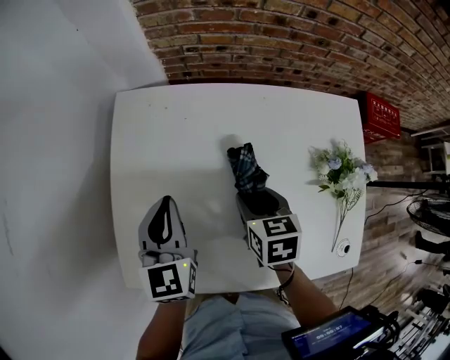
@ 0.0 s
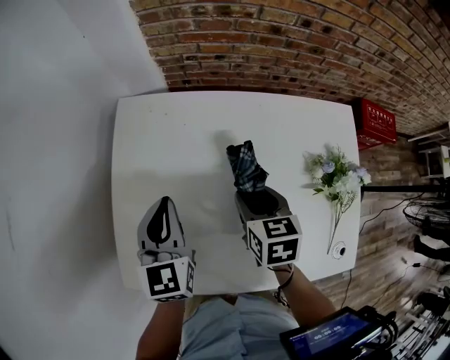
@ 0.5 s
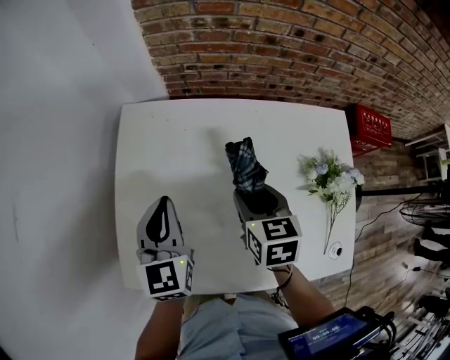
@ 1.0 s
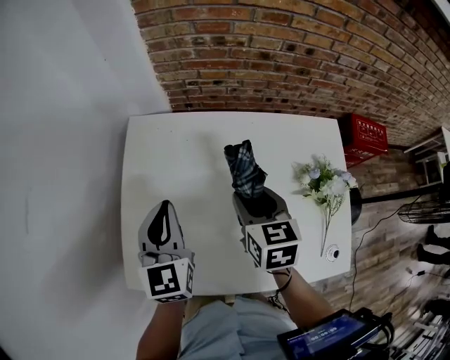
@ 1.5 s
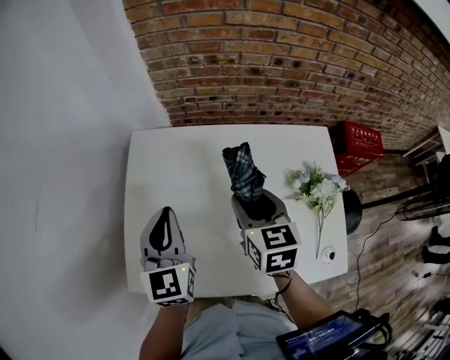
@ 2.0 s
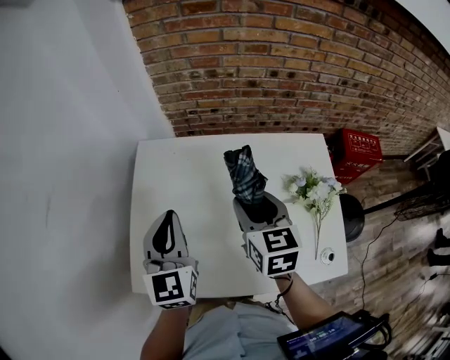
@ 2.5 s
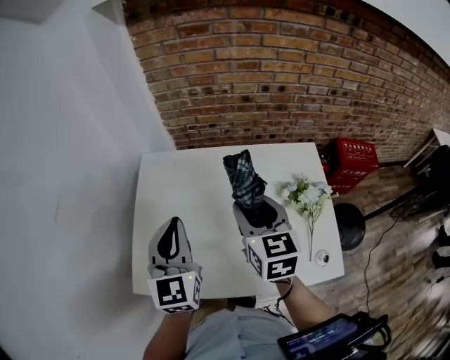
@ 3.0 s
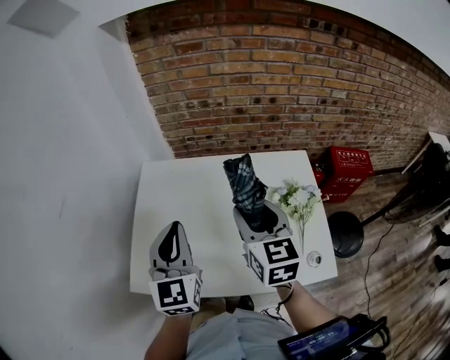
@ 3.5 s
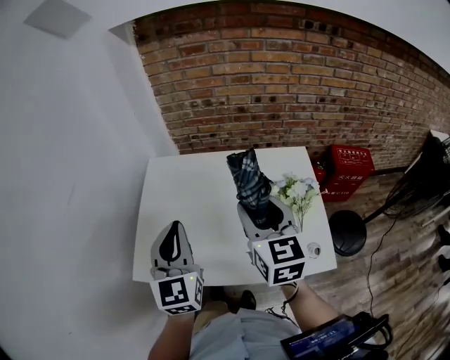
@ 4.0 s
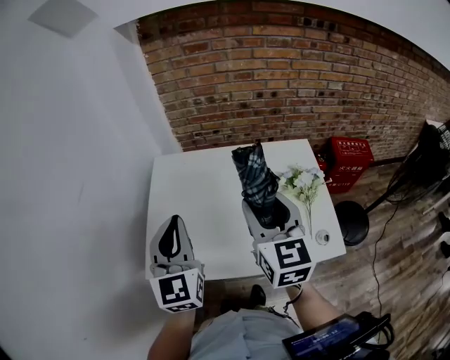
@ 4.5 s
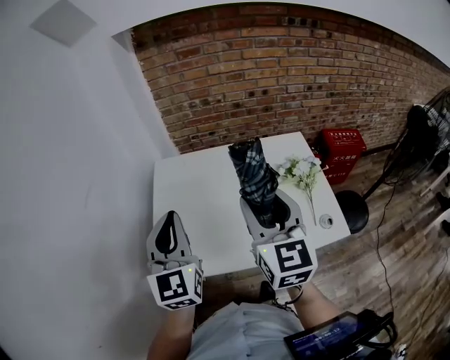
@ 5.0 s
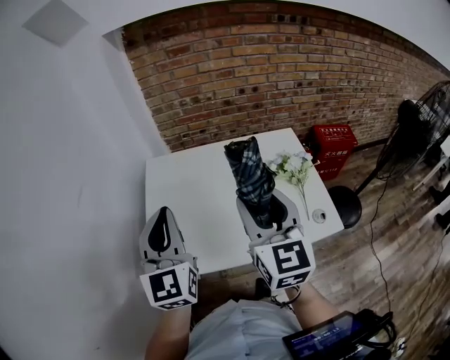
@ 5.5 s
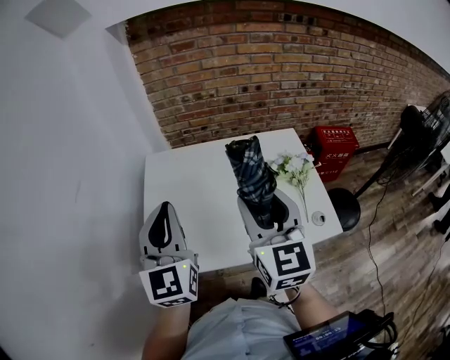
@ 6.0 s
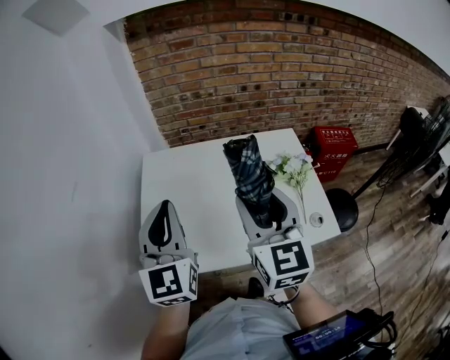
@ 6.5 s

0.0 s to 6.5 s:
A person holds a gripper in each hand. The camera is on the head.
0.0 to 2.0 s: The right gripper is displaced upward by some 15 cm, and rotates some 20 degrees. The left gripper heads upward, covering roughly 10 cm.
2.0 to 4.5 s: The left gripper moves backward and upward, approximately 20 cm, while the right gripper heads upward and backward, covering roughly 25 cm, and turns by roughly 20 degrees.
4.5 to 6.5 s: The right gripper changes place by about 5 cm.

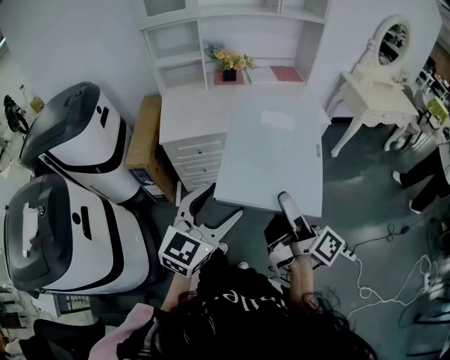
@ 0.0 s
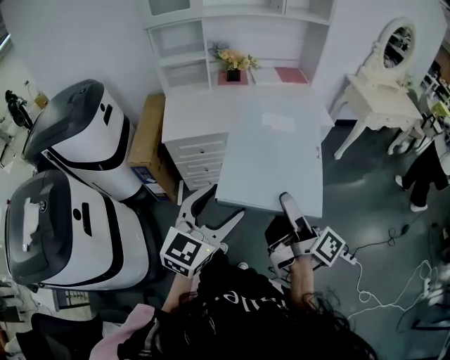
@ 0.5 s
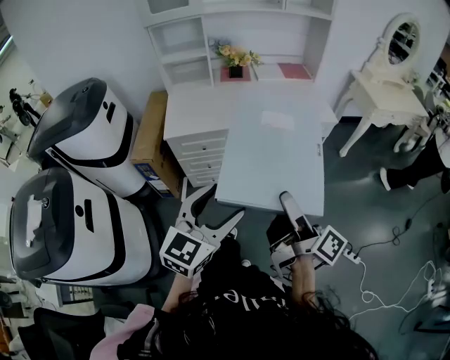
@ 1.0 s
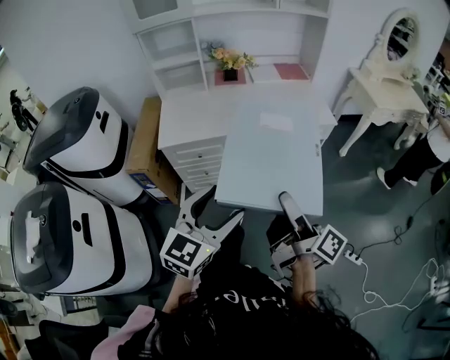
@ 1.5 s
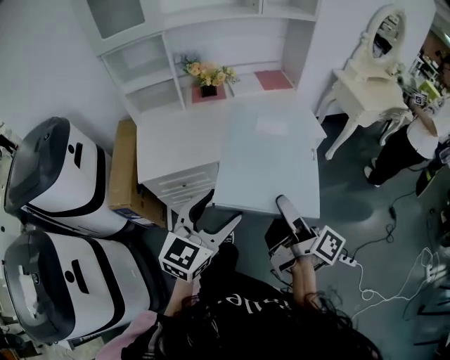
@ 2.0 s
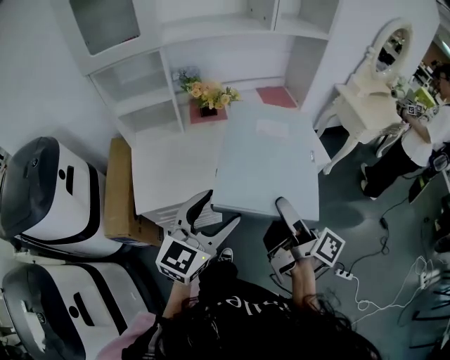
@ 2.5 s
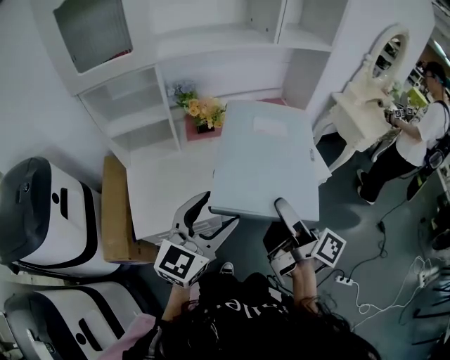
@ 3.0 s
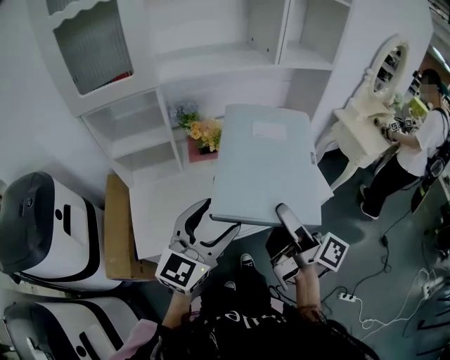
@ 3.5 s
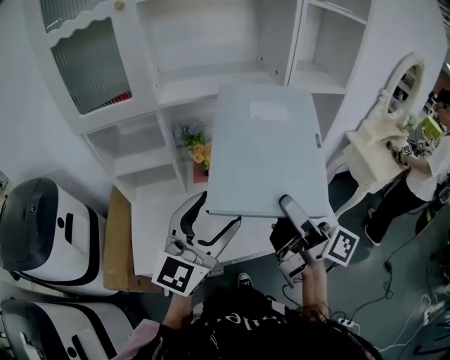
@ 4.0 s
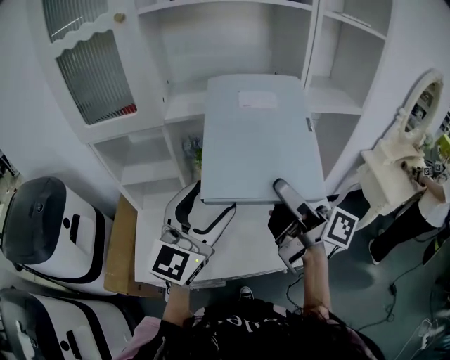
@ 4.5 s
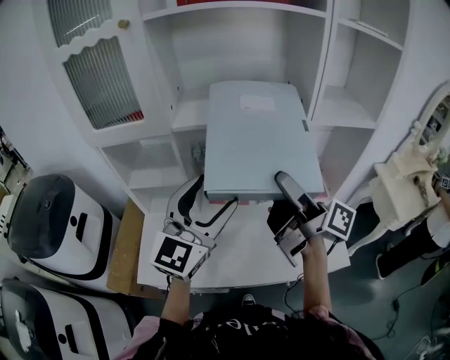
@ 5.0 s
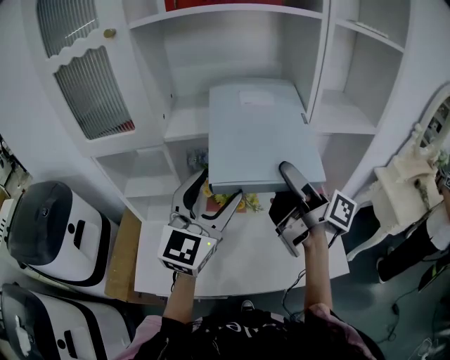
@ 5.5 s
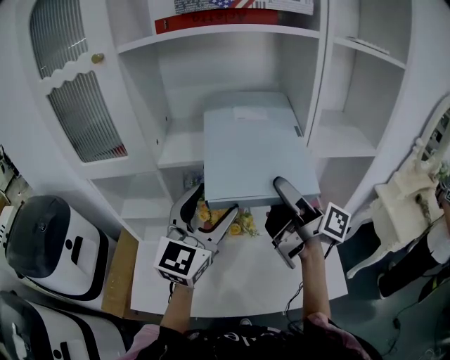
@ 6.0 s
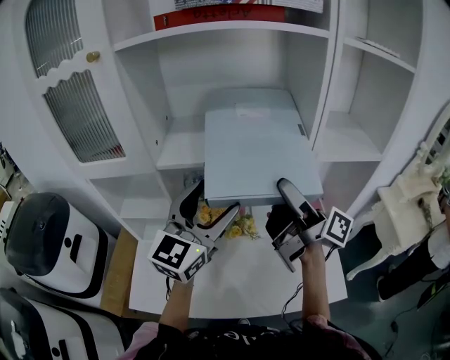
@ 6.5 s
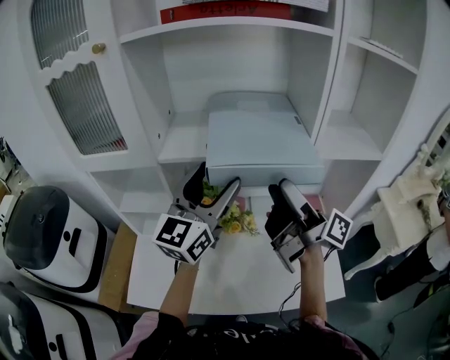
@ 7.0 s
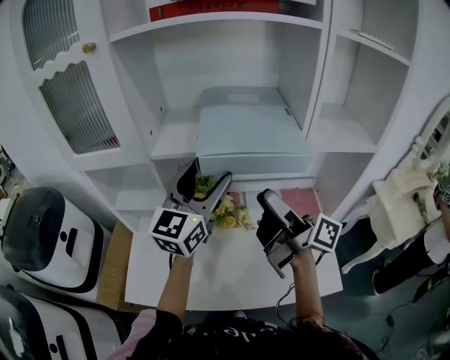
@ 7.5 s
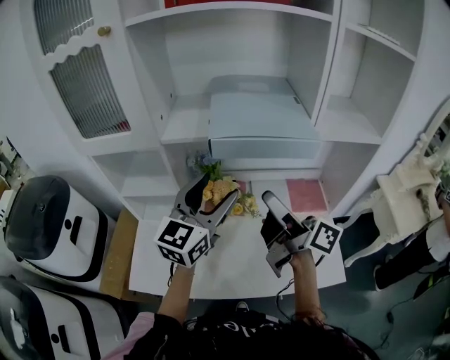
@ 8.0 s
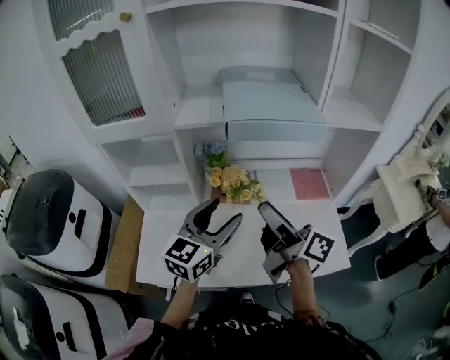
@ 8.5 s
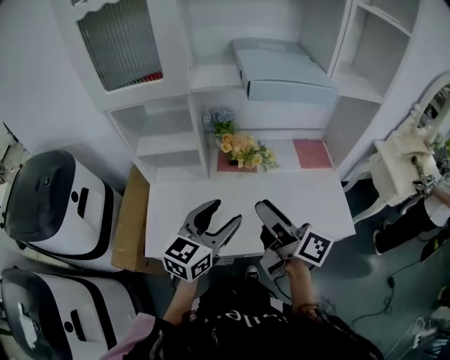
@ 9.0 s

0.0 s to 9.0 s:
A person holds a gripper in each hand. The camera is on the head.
0.0 to 2.0 s: The grippers both shift forward by about 20 cm.
2.0 to 4.5 s: The two grippers travel together, forward, approximately 40 cm. Both grippers travel together upward, about 15 cm. The right gripper rotates some 30 degrees. Meanwhile the left gripper changes its angle by roughly 30 degrees.
4.5 to 7.0 s: The two grippers go approximately 15 cm forward.
7.0 to 9.0 s: The right gripper goes roughly 25 cm backward, to the left and downward, and rotates approximately 30 degrees. Meanwhile the left gripper goes about 30 cm backward, downward and to the left, and turns by about 30 degrees.

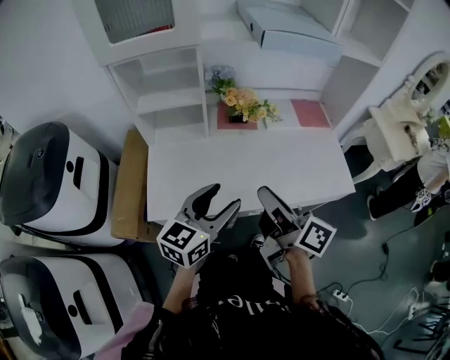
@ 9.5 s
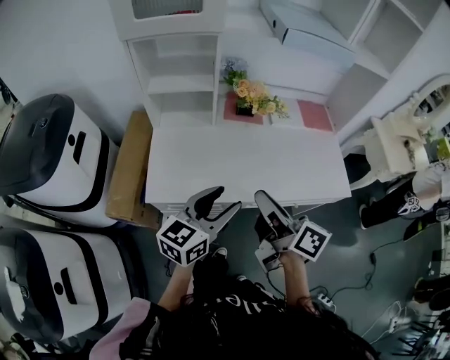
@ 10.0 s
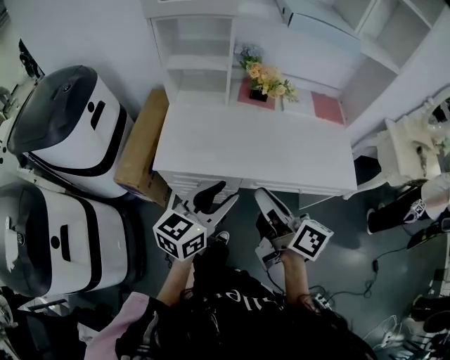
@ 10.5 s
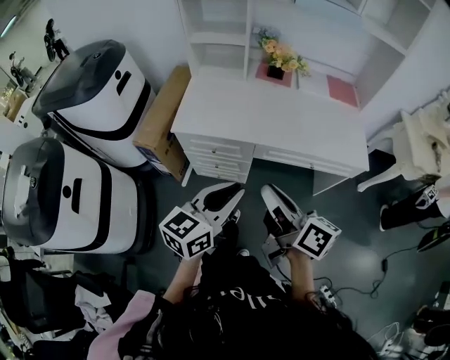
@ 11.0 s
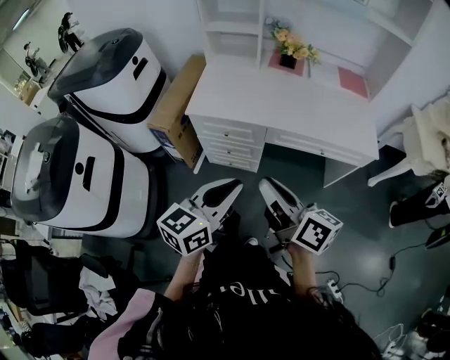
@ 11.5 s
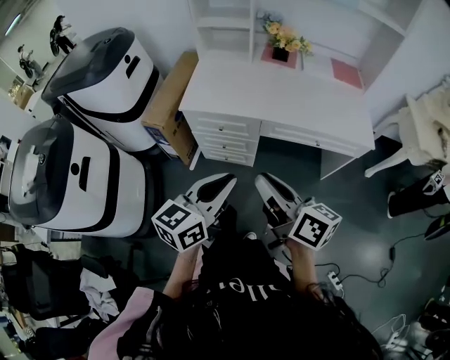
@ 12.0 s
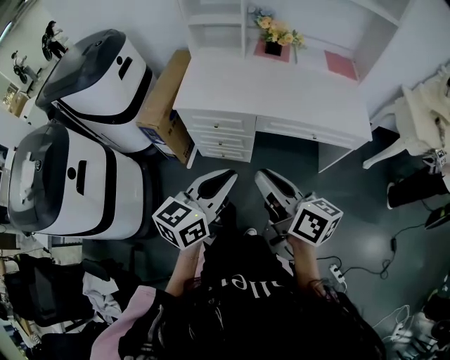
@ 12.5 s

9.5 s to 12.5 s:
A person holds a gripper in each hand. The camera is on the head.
9.5 to 11.0 s: Both grippers travel together backward, some 25 cm. The left gripper closes up.
11.0 to 12.5 s: The two grippers go about 5 cm backward.

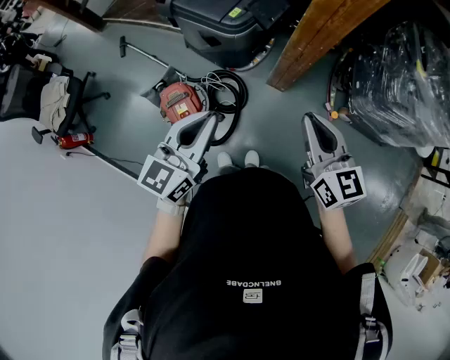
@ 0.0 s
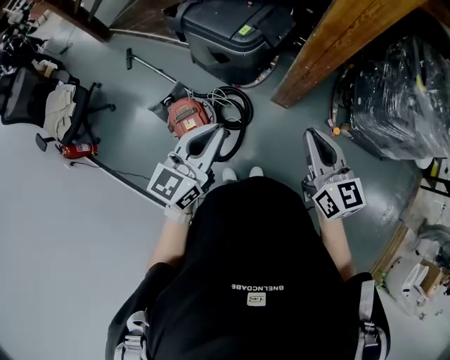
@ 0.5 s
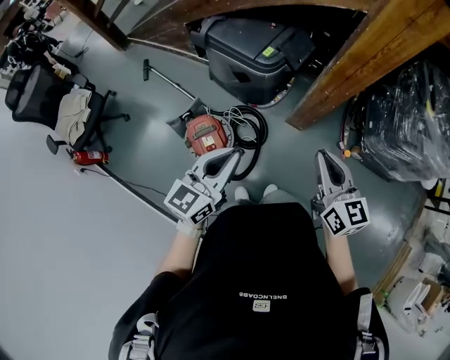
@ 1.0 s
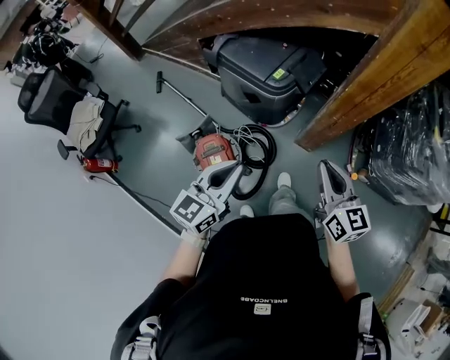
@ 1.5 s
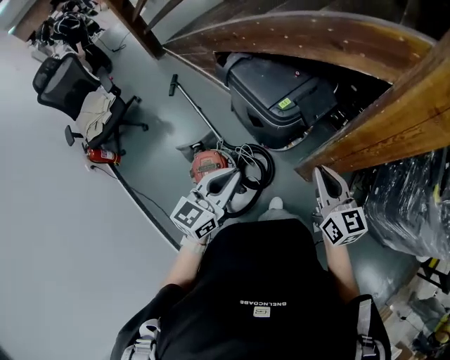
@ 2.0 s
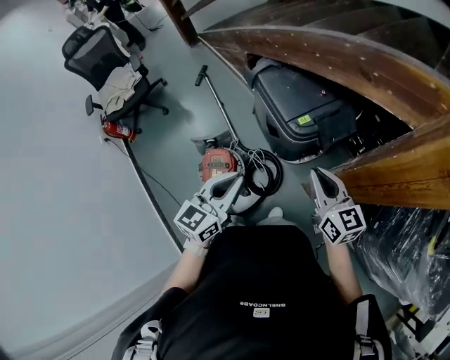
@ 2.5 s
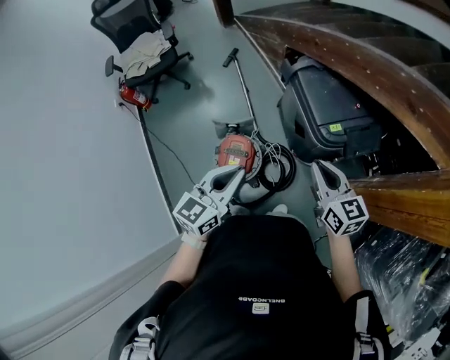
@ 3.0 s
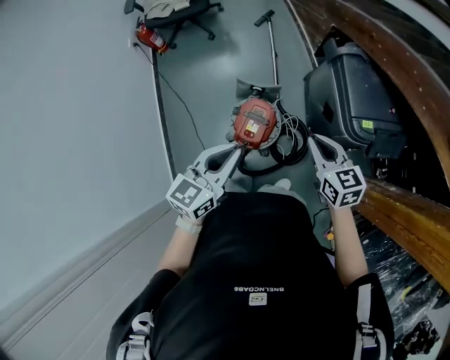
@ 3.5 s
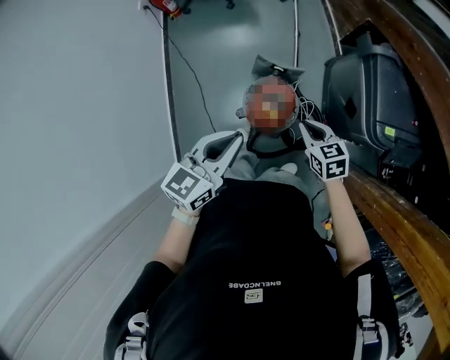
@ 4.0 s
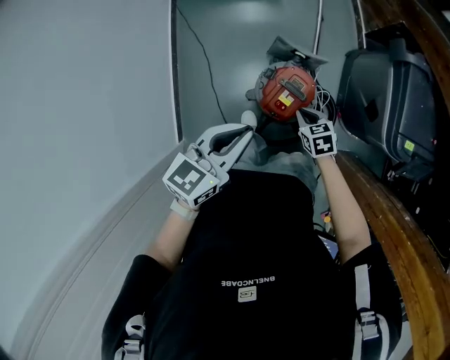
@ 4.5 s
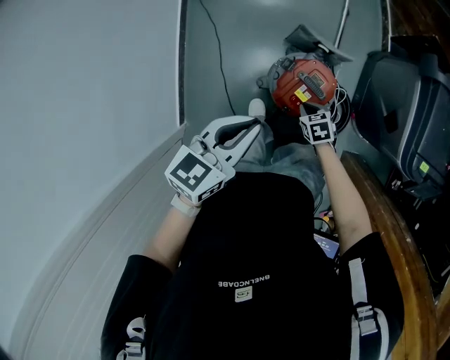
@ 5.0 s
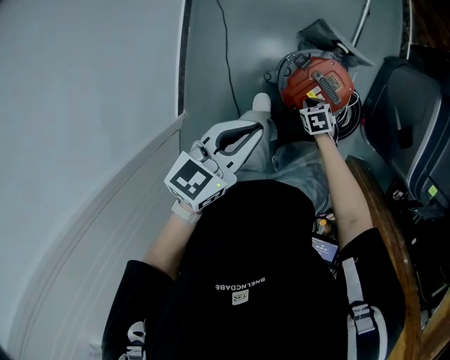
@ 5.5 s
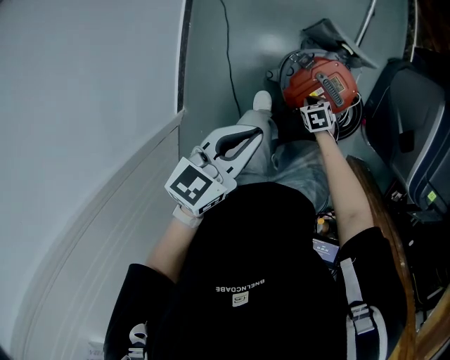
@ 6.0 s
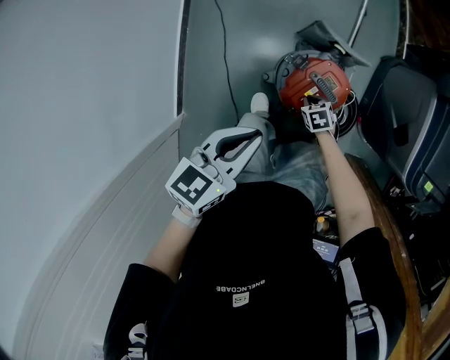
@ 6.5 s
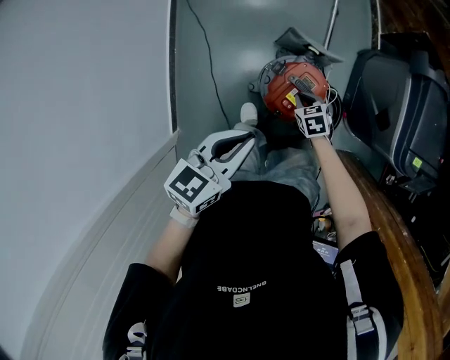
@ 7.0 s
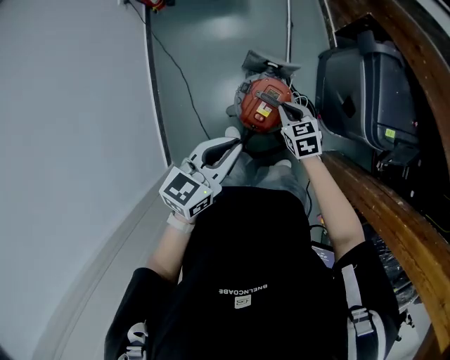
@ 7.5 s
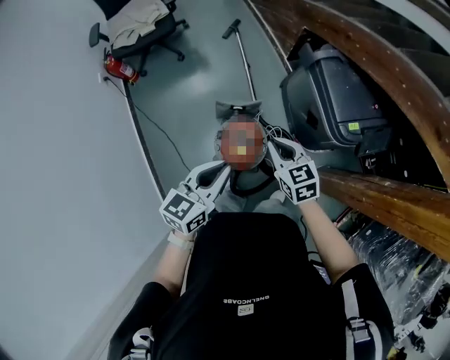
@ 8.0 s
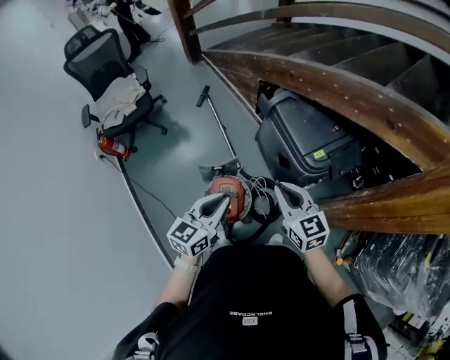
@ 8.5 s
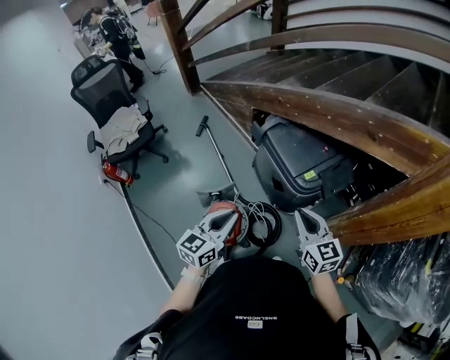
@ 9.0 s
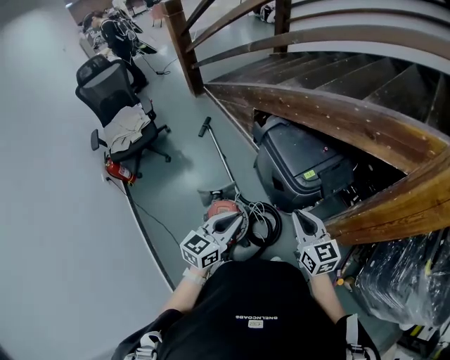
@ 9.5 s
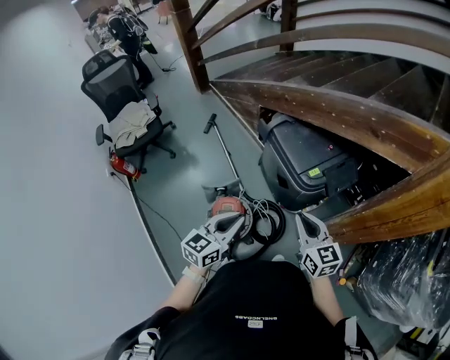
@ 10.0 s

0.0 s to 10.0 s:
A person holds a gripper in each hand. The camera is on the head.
0.0 to 2.0 s: The grippers both shift forward by roughly 20 cm.
2.0 to 4.0 s: The right gripper changes place by approximately 50 cm, and tilts its fingers roughly 40 degrees downward. Meanwhile the left gripper changes place by some 30 cm, and turns by some 40 degrees.
4.0 to 6.0 s: The right gripper is displaced downward by some 50 cm, and changes its angle by about 40 degrees. Meanwhile the left gripper goes about 25 cm downward.
6.0 to 8.0 s: The left gripper is displaced upward by about 25 cm, and turns by some 30 degrees. The right gripper travels upward by roughly 50 cm, and tilts its fingers about 40 degrees upward.
8.0 to 10.0 s: The right gripper moves to the right and upward, approximately 30 cm, and rotates roughly 30 degrees; the left gripper travels to the right and upward by roughly 20 cm.
